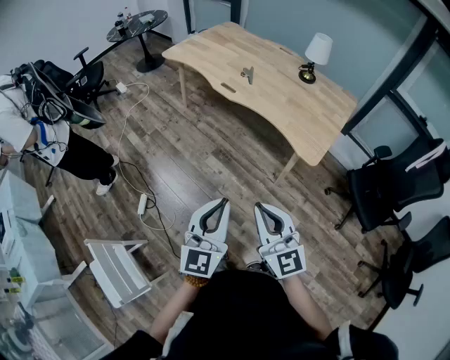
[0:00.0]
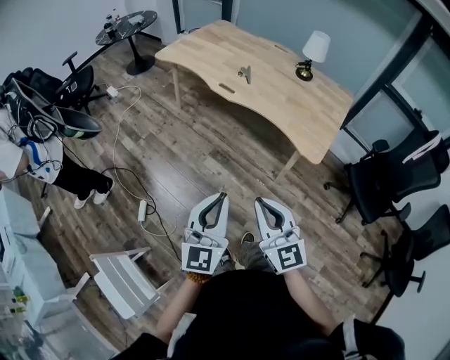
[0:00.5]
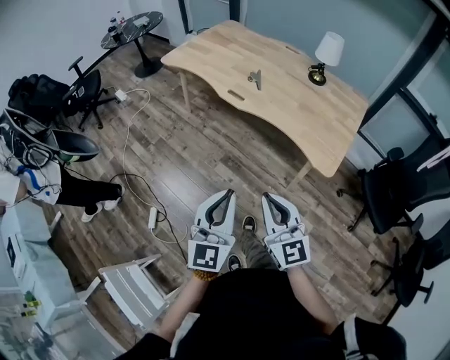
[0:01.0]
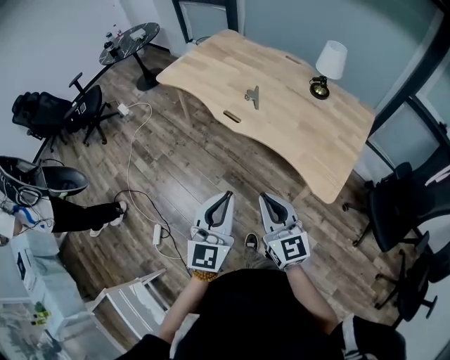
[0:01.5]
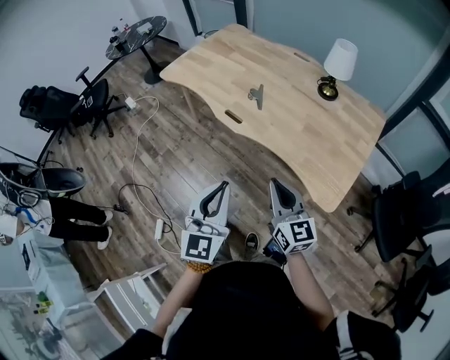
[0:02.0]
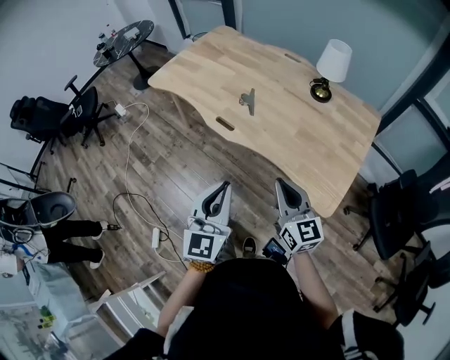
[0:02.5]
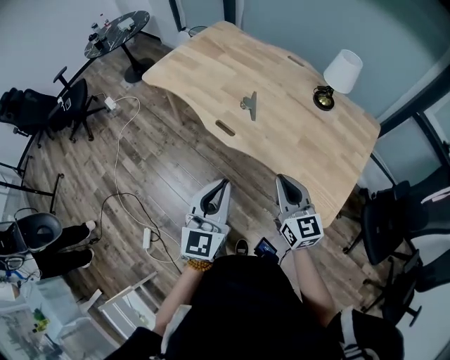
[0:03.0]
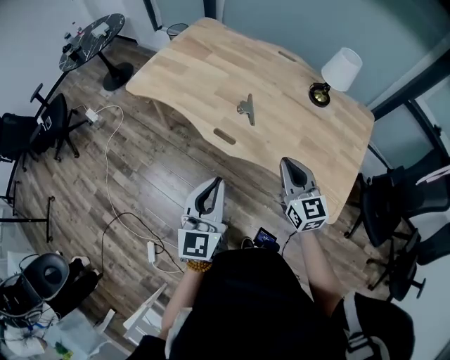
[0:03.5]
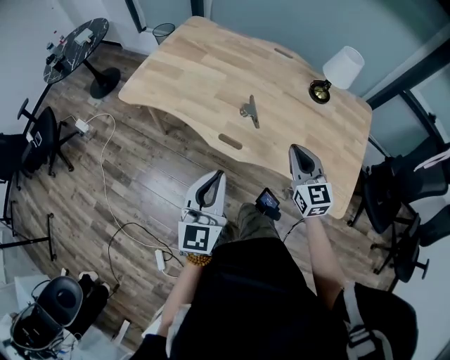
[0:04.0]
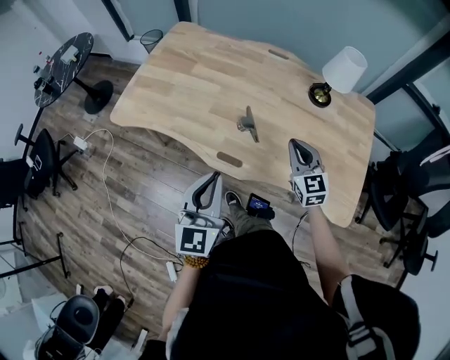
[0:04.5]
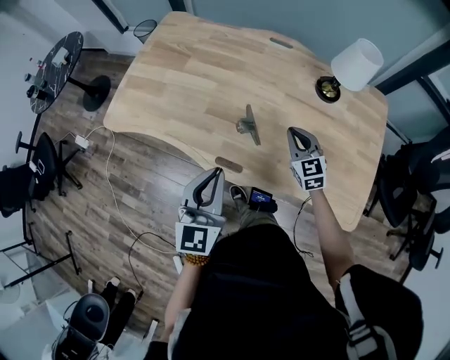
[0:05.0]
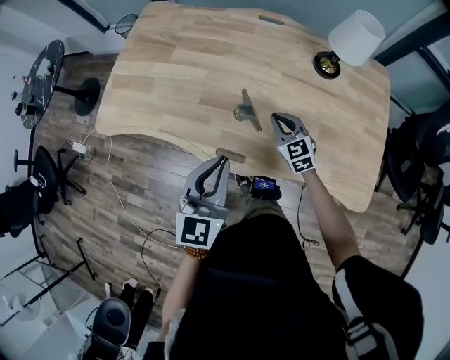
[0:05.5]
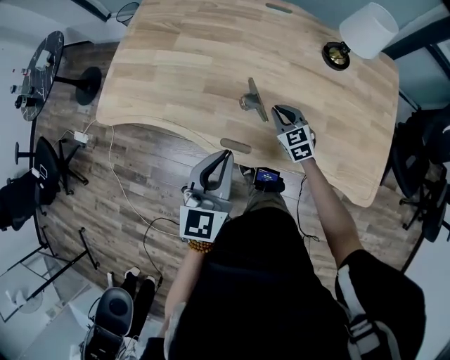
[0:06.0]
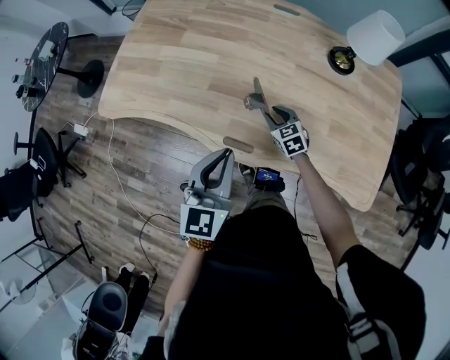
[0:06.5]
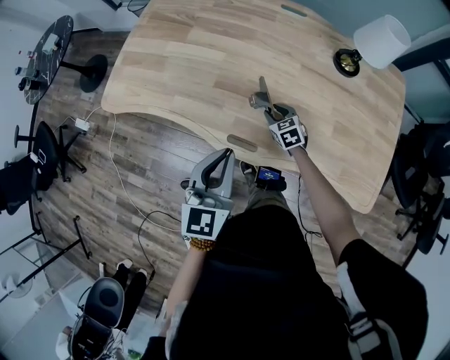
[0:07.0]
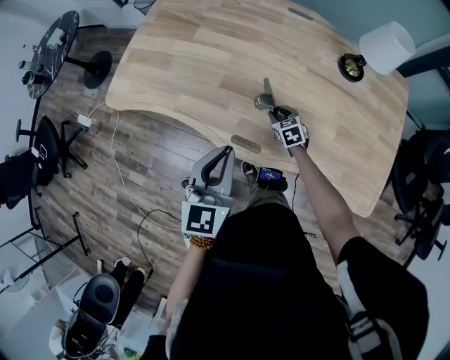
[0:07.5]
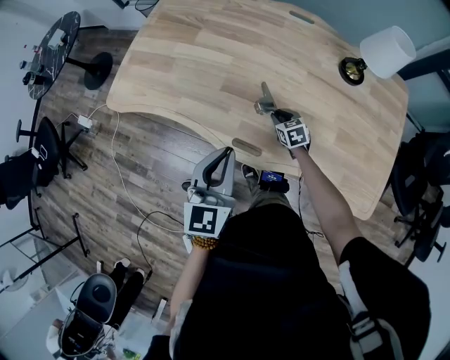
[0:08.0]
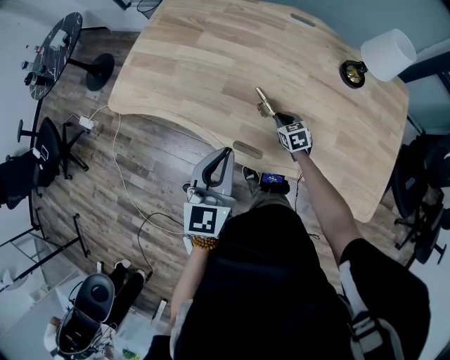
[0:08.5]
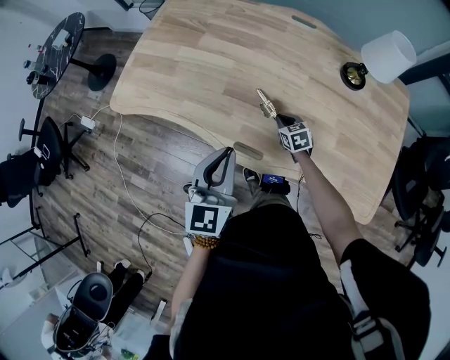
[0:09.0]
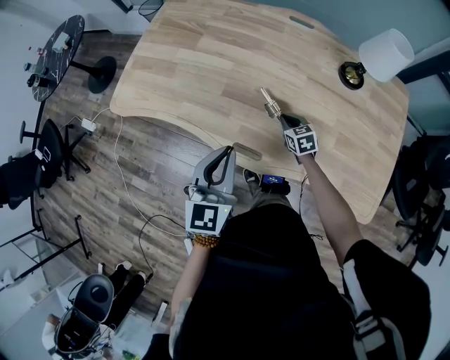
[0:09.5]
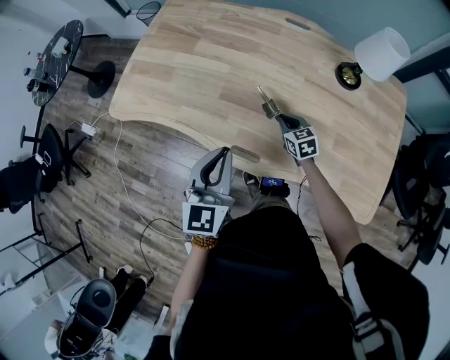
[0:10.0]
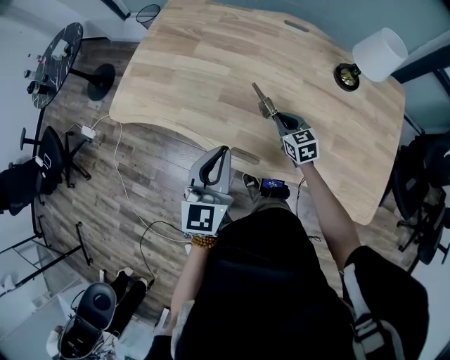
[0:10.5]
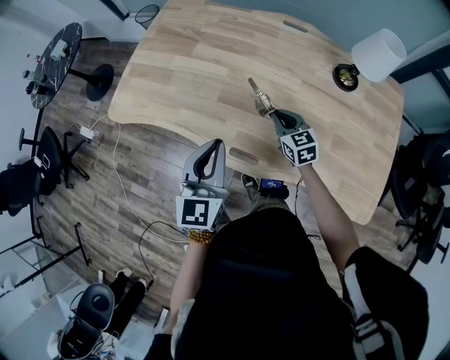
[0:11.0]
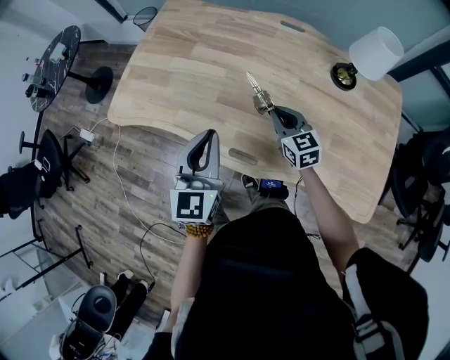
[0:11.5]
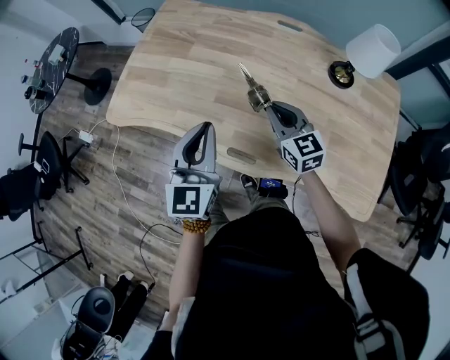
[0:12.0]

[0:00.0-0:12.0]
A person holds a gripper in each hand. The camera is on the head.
0:00.0 to 0:02.0: The two grippers go some 35 cm forward. The right gripper swivels some 20 degrees.
0:02.0 to 0:04.0: The left gripper shifts about 30 cm forward and to the left. Meanwhile the right gripper shifts some 30 cm forward, and rotates some 30 degrees.
0:04.0 to 0:06.0: The right gripper goes some 35 cm downward and forward, and changes its angle by roughly 20 degrees; the left gripper travels forward and downward by roughly 20 cm.
0:06.0 to 0:08.0: The right gripper moves downward, about 10 cm.
0:08.0 to 0:10.0: The right gripper goes some 5 cm upward.
0:10.0 to 0:12.0: The left gripper is displaced forward by about 5 cm. The right gripper shifts some 20 cm upward, and turns by roughly 20 degrees.

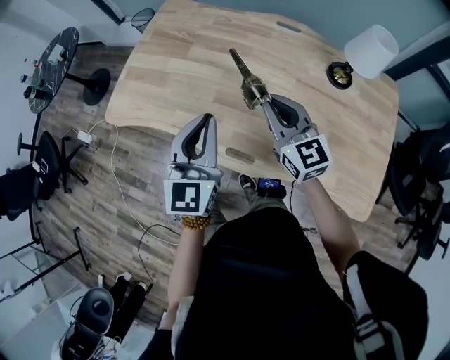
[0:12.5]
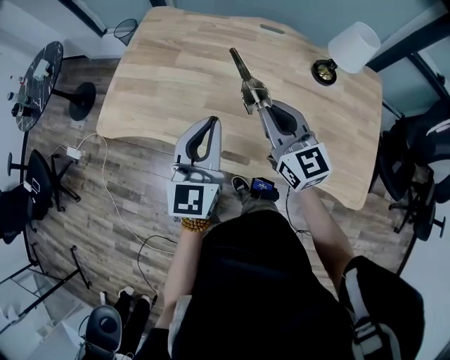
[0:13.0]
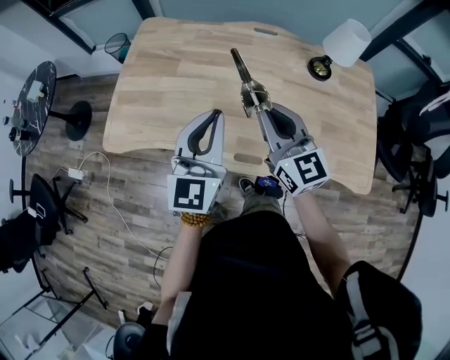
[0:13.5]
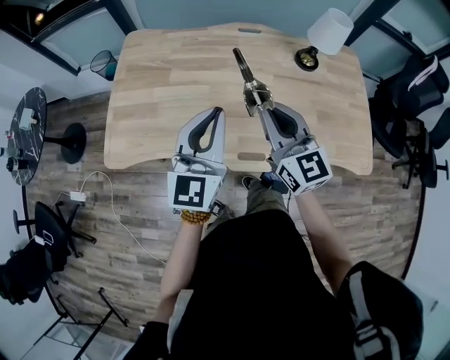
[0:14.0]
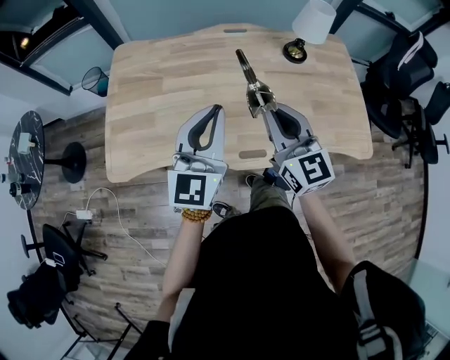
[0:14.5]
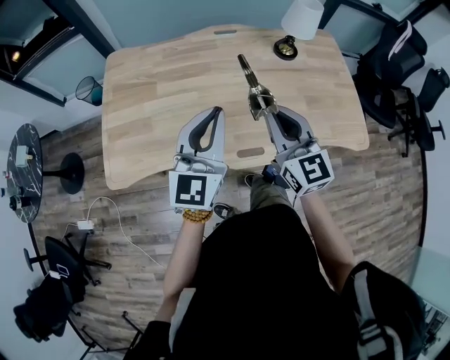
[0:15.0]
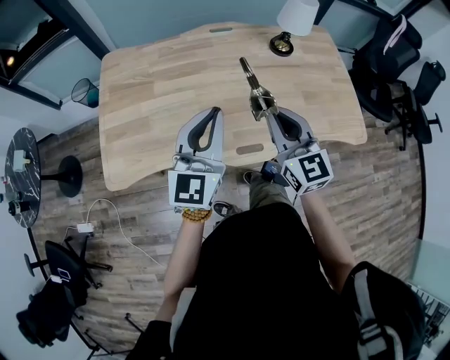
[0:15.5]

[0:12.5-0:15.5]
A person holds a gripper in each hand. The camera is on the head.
0:12.5 to 0:14.0: Both grippers travel together upward and to the left, about 10 cm. The left gripper turns by about 30 degrees, while the right gripper changes its angle by about 20 degrees.
0:14.0 to 0:15.5: The right gripper moves roughly 5 cm.

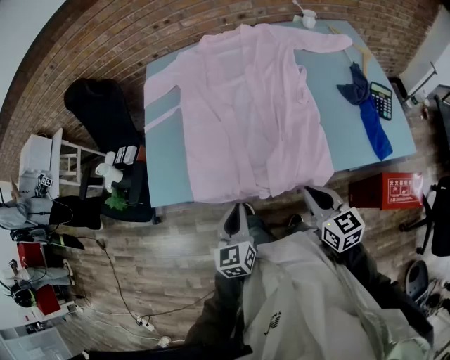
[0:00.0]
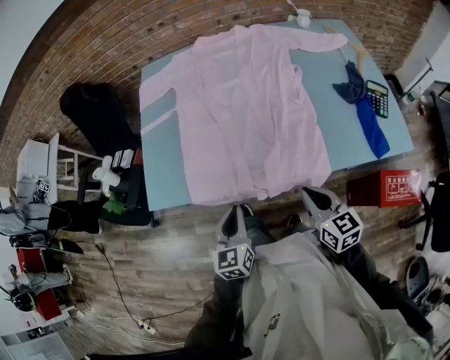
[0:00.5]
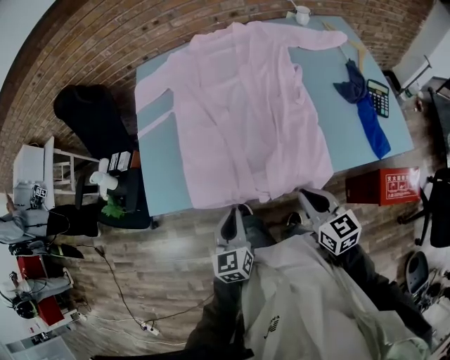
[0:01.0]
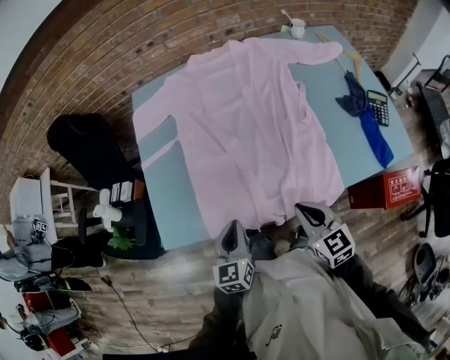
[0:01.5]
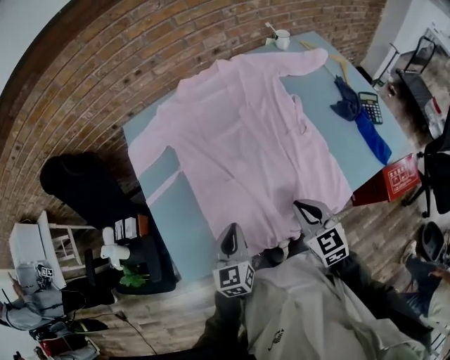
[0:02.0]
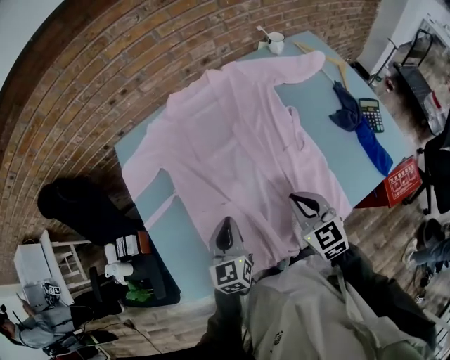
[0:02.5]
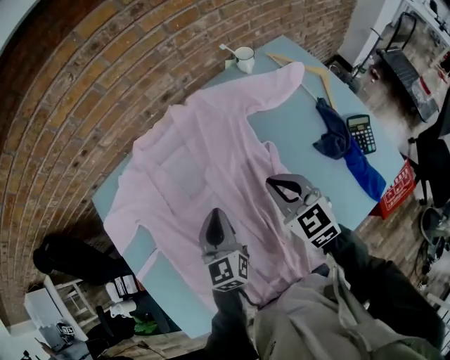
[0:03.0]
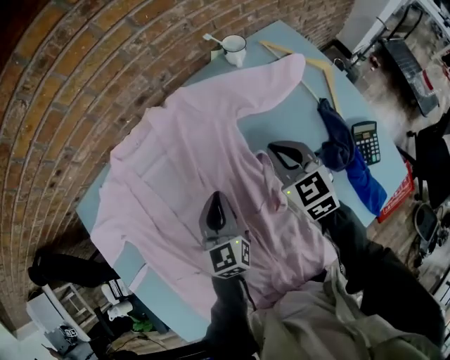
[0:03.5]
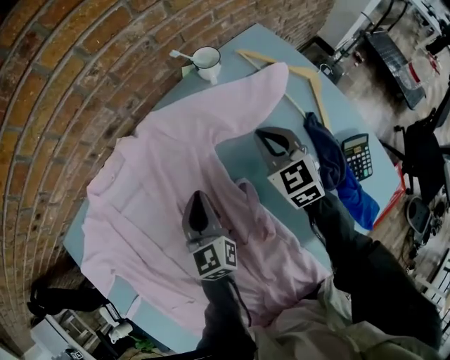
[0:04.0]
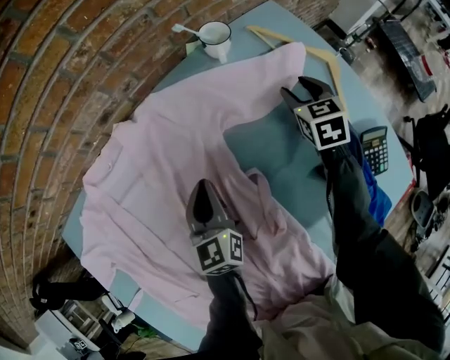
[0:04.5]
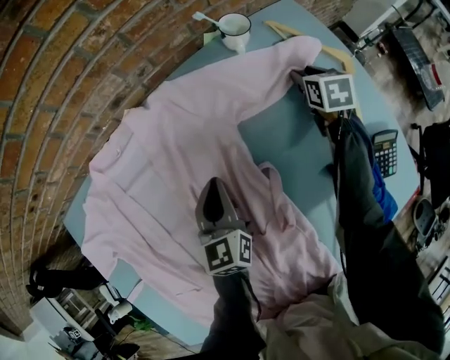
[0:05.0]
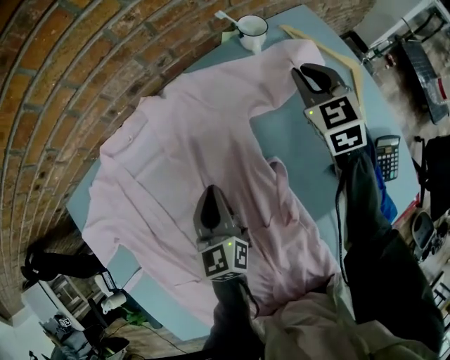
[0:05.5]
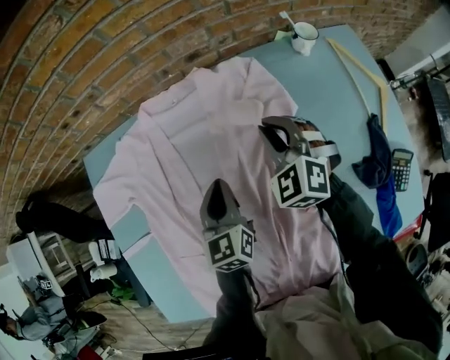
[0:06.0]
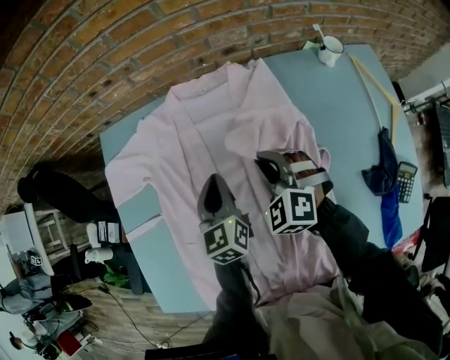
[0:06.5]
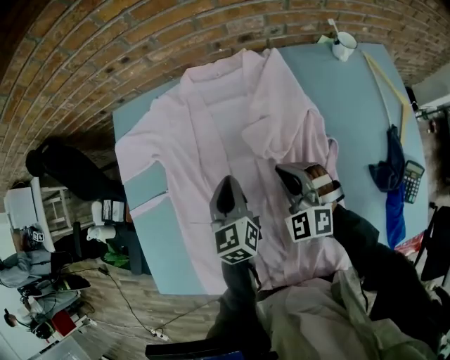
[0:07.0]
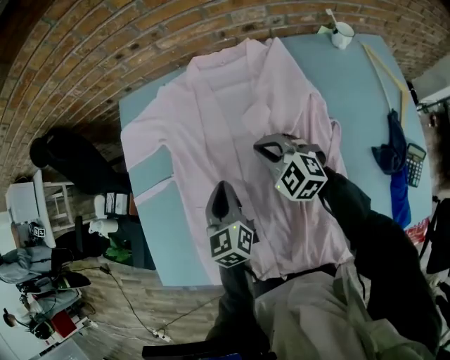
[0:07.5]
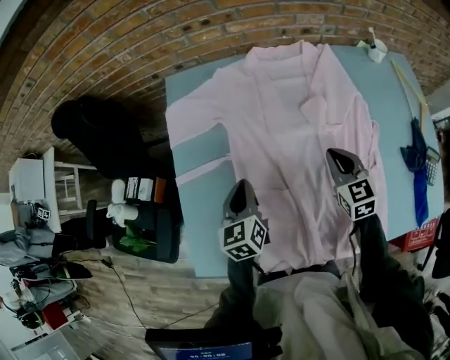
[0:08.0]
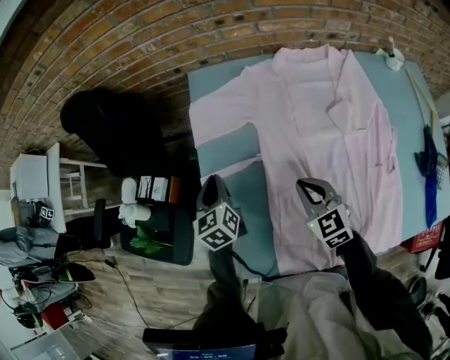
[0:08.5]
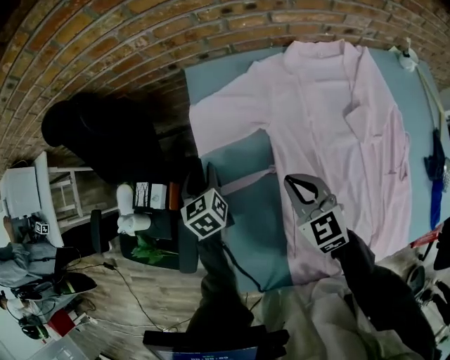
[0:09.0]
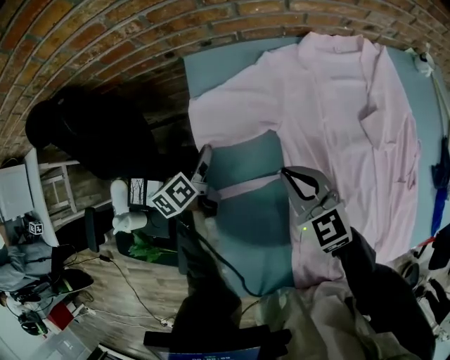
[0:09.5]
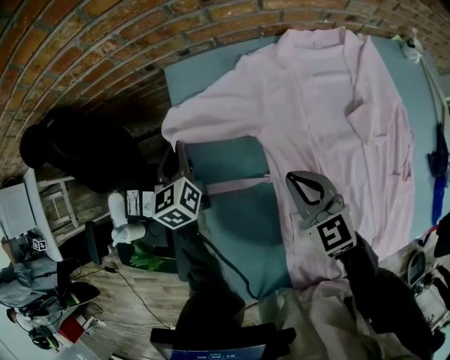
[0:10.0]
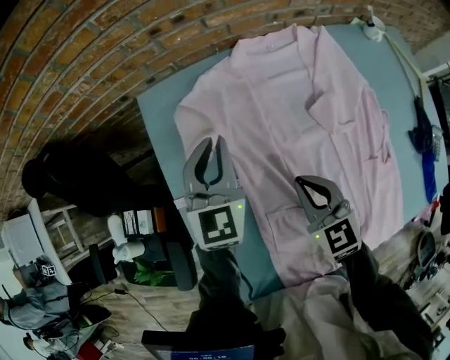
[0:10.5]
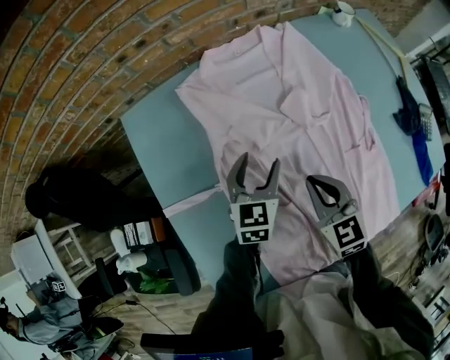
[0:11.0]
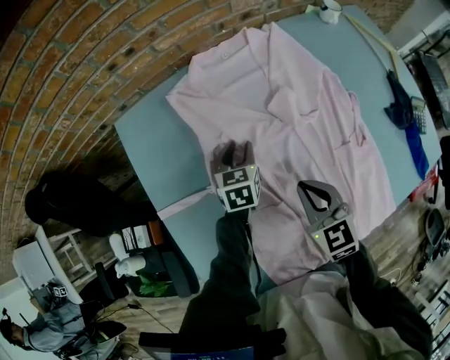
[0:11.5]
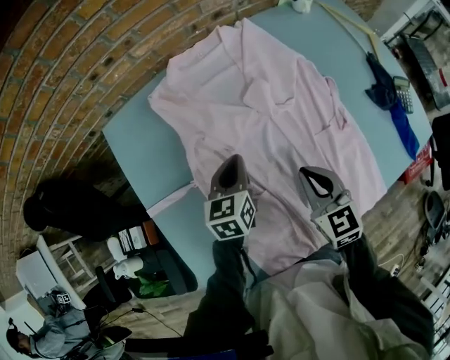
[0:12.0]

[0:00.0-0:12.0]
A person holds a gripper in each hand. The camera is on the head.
0:00.0 to 0:02.0: Both grippers move forward and to the left, approximately 20 cm. The right gripper changes its angle by approximately 20 degrees.
0:02.0 to 0:04.0: Both grippers are carried forward and to the right, some 50 cm.
0:04.0 to 0:06.0: The left gripper is displaced to the left and backward by approximately 15 cm, while the right gripper is displaced to the left by some 20 cm, swivels about 40 degrees, and opens, then closes once more.
0:06.0 to 0:08.0: The left gripper shifts roughly 25 cm to the left, while the right gripper moves to the left and backward, roughly 20 cm, and swivels some 30 degrees.
0:08.0 to 0:10.0: The left gripper moves forward and to the left, some 35 cm, and opens, then closes once more; the right gripper travels to the left and forward by about 25 cm.
0:10.0 to 0:12.0: The right gripper moves approximately 25 cm, and swivels roughly 30 degrees; the left gripper swings up and down, roughly 15 cm each way, with 2 reversals, rotates roughly 30 degrees, and opens, then closes once more.
